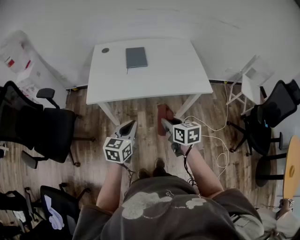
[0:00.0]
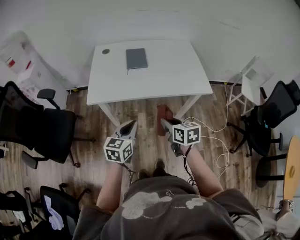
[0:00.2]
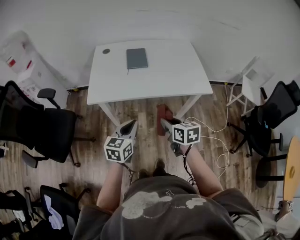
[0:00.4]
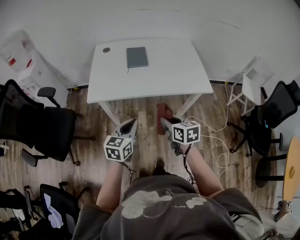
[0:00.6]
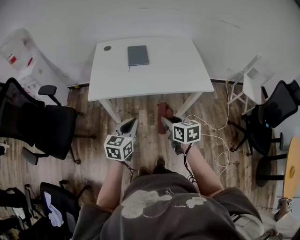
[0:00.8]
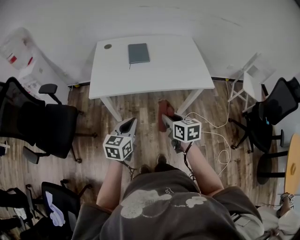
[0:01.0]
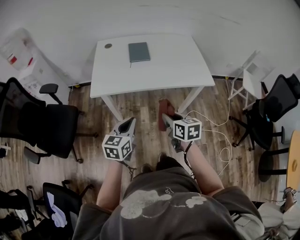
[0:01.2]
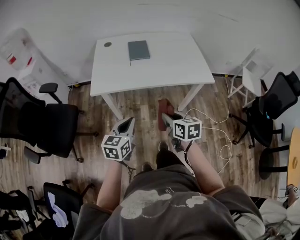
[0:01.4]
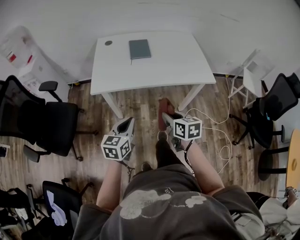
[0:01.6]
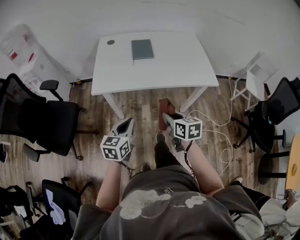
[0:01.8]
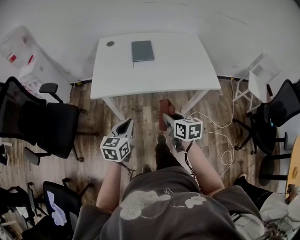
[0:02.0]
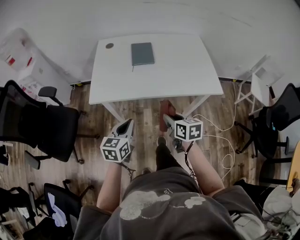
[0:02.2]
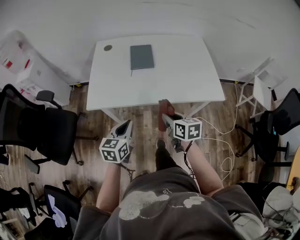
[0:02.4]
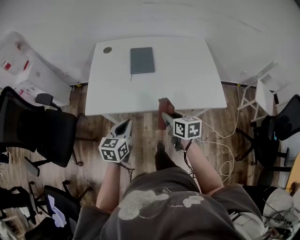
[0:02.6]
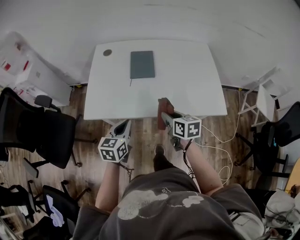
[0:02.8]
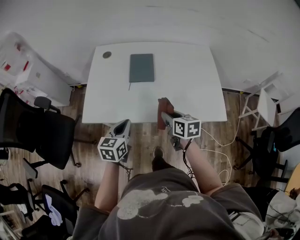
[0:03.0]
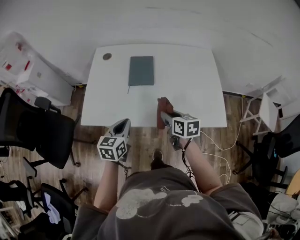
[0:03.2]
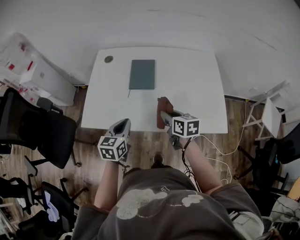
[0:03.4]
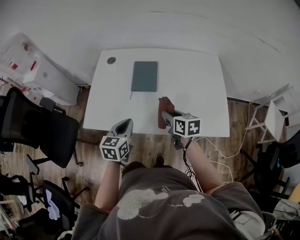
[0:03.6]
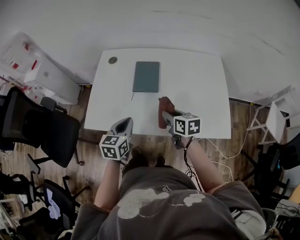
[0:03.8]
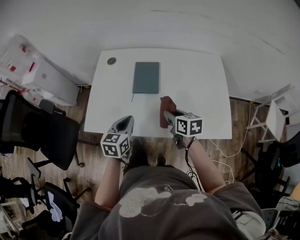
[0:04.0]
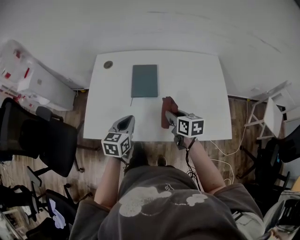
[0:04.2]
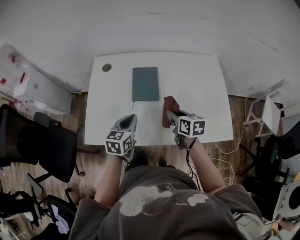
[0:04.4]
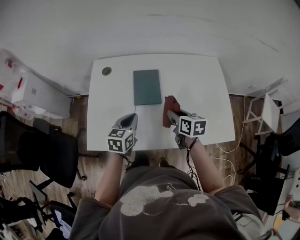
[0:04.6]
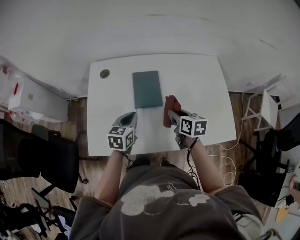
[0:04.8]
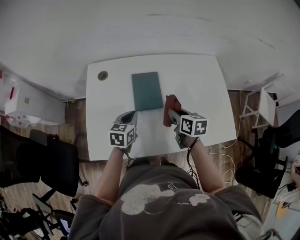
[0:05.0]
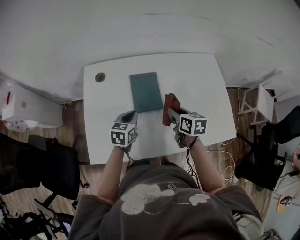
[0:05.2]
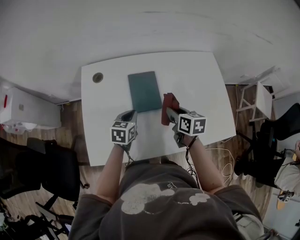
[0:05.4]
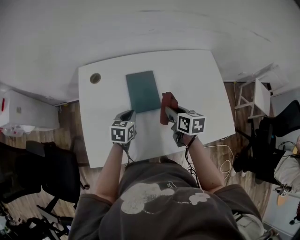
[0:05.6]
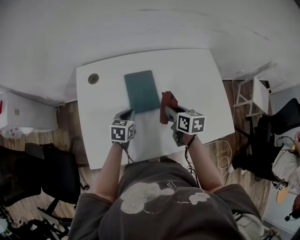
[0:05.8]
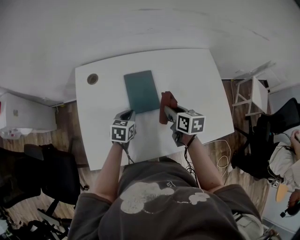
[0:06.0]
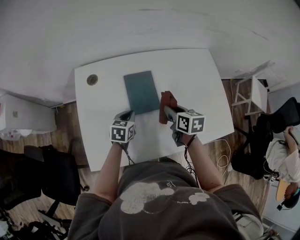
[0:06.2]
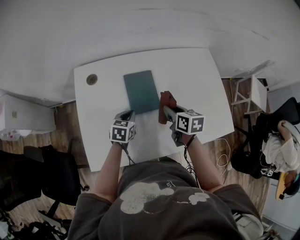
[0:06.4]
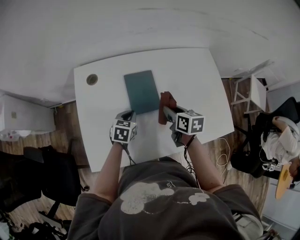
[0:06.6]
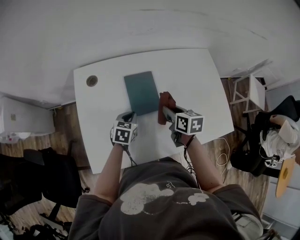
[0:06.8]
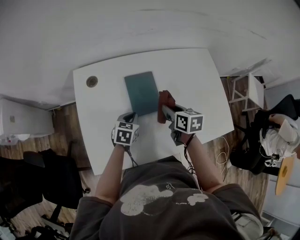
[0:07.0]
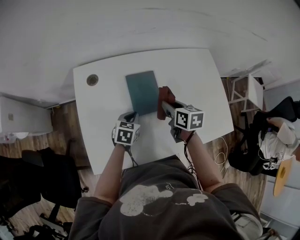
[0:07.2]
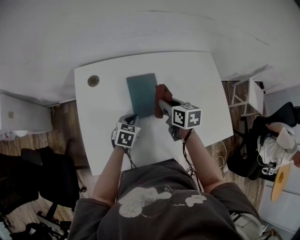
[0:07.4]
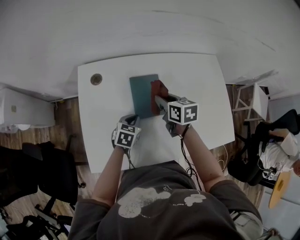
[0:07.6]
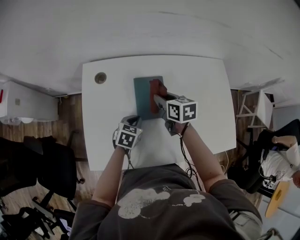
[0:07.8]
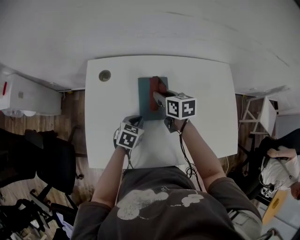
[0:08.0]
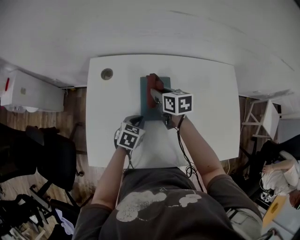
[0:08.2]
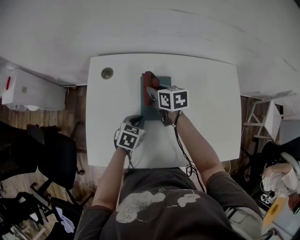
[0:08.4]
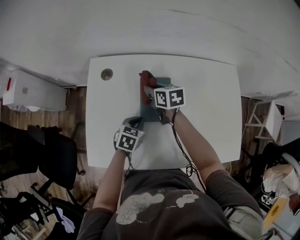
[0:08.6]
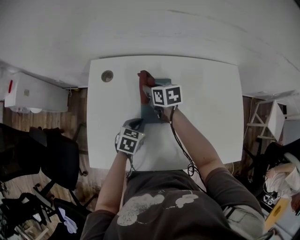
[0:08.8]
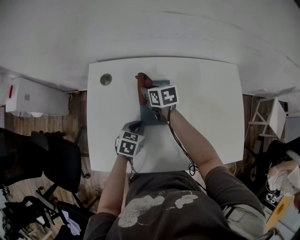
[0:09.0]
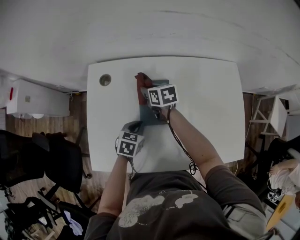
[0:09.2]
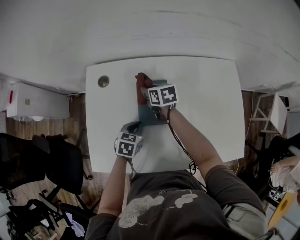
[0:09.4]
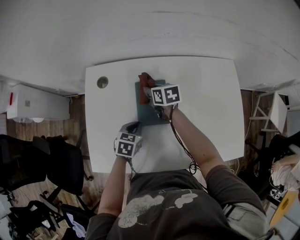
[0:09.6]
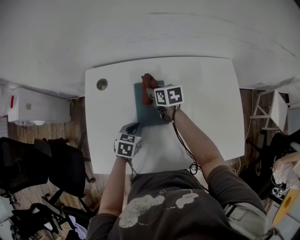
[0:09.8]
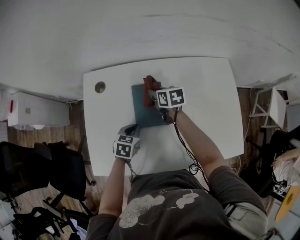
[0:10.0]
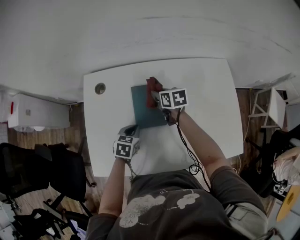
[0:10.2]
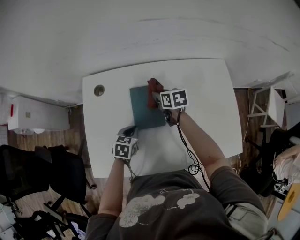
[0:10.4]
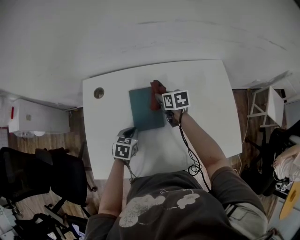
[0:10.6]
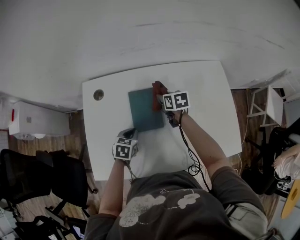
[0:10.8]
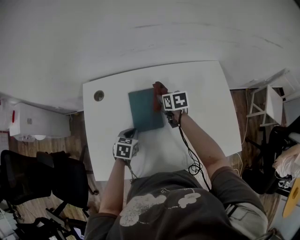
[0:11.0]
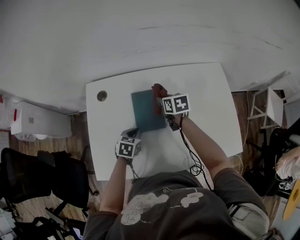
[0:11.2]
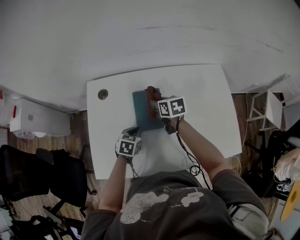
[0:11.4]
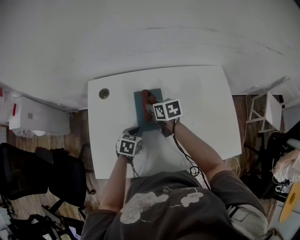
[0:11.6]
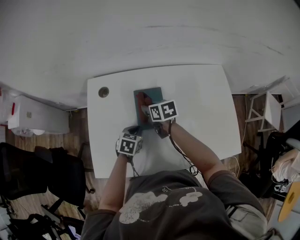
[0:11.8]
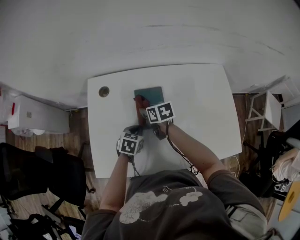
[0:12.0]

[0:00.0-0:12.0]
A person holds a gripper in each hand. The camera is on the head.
0:00.0 to 0:01.6: The left gripper shifts by some 5 cm; the right gripper moves roughly 5 cm.
0:01.6 to 0:03.0: Both grippers travel together forward, roughly 30 cm.
0:03.0 to 0:04.4: The grippers both shift forward by some 15 cm.
0:04.4 to 0:06.0: The left gripper travels forward and downward by about 15 cm. Meanwhile the right gripper moves forward, some 10 cm.
0:06.0 to 0:07.6: The right gripper goes about 10 cm to the left and forward.
0:07.6 to 0:09.0: The right gripper heads forward, to the left and downward, covering approximately 15 cm.
0:09.0 to 0:10.4: The right gripper shifts roughly 10 cm to the right.
0:10.4 to 0:12.0: The right gripper is displaced to the left and backward by some 10 cm.

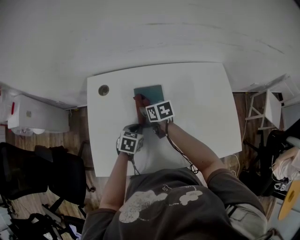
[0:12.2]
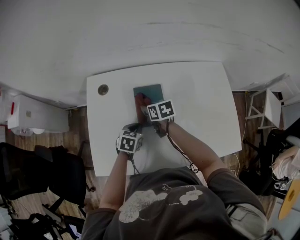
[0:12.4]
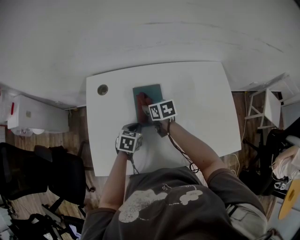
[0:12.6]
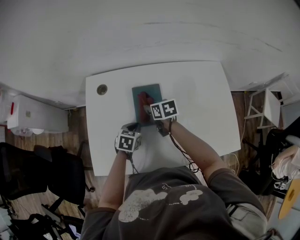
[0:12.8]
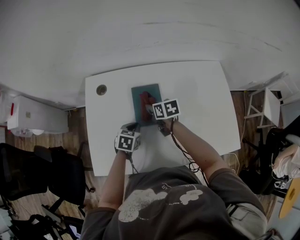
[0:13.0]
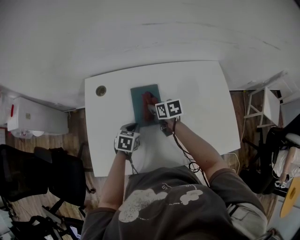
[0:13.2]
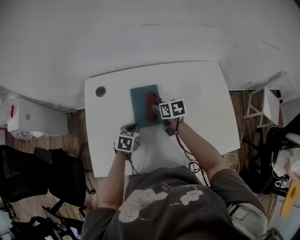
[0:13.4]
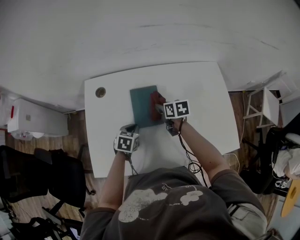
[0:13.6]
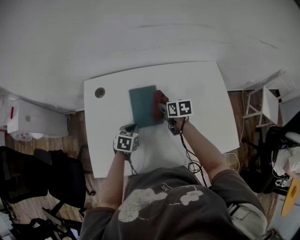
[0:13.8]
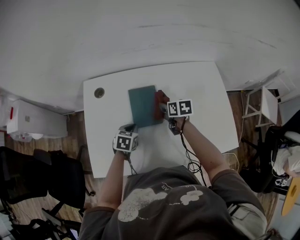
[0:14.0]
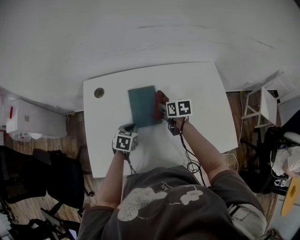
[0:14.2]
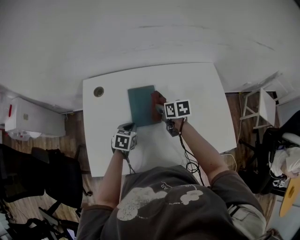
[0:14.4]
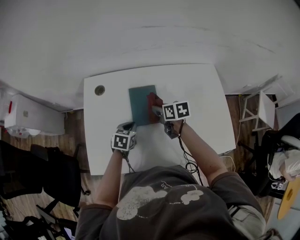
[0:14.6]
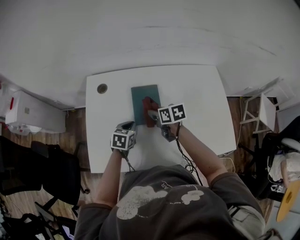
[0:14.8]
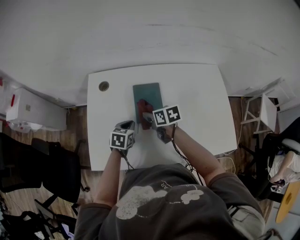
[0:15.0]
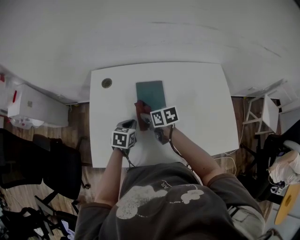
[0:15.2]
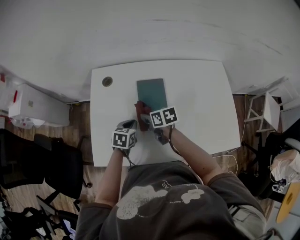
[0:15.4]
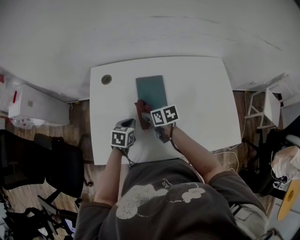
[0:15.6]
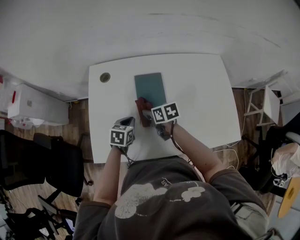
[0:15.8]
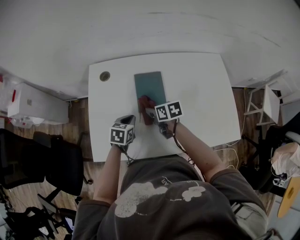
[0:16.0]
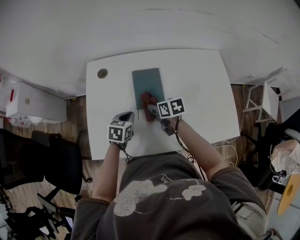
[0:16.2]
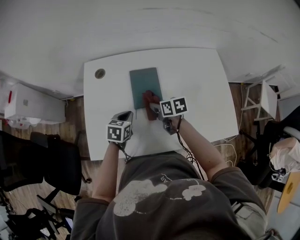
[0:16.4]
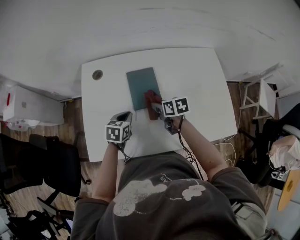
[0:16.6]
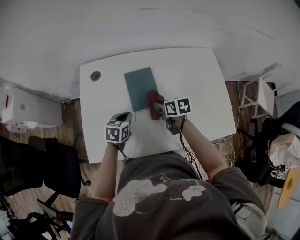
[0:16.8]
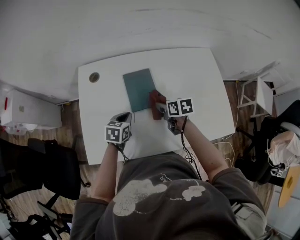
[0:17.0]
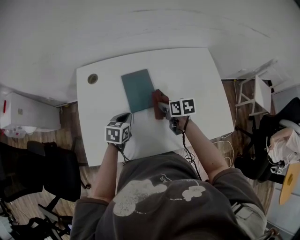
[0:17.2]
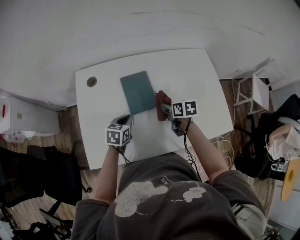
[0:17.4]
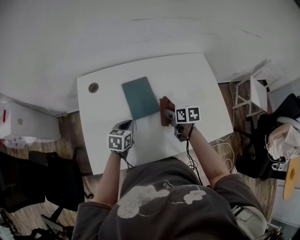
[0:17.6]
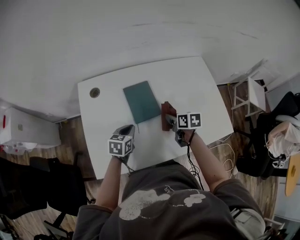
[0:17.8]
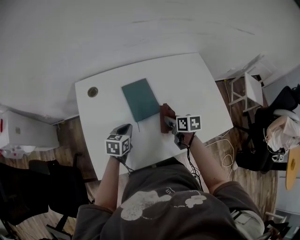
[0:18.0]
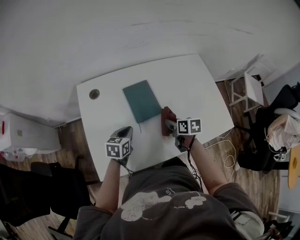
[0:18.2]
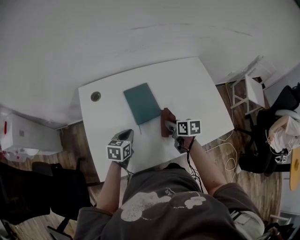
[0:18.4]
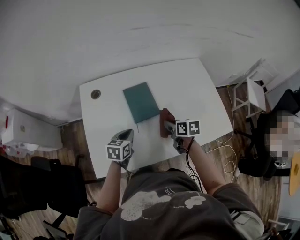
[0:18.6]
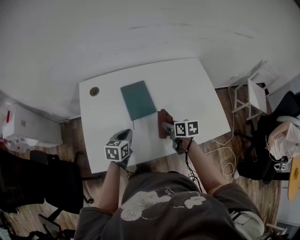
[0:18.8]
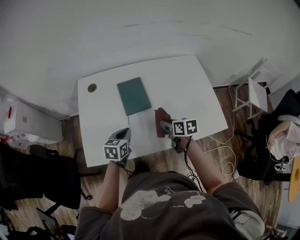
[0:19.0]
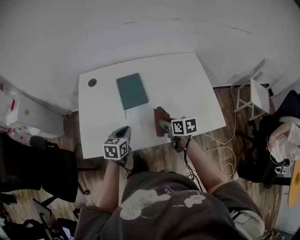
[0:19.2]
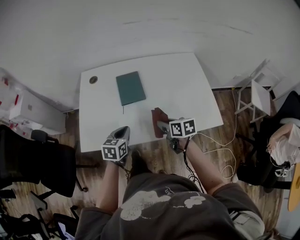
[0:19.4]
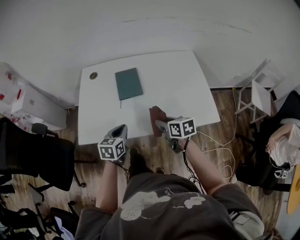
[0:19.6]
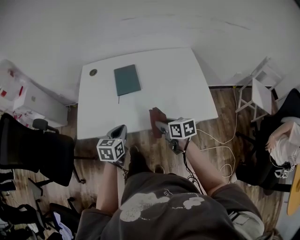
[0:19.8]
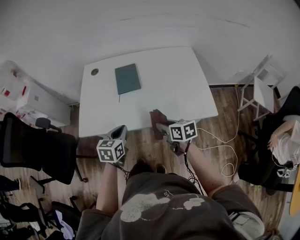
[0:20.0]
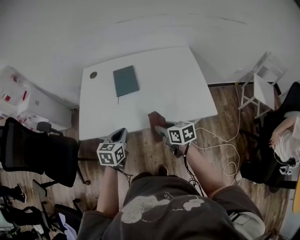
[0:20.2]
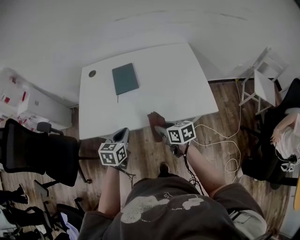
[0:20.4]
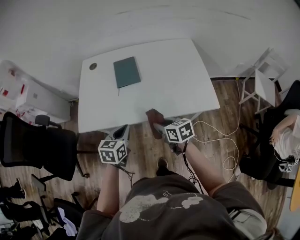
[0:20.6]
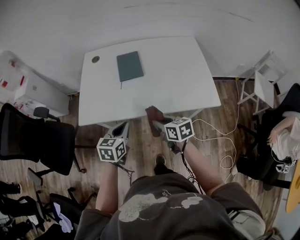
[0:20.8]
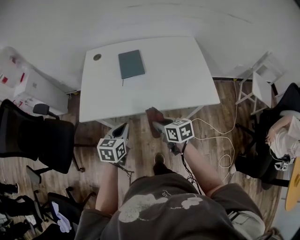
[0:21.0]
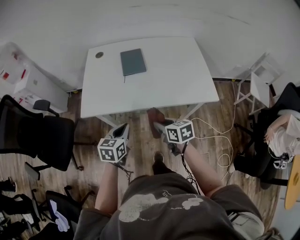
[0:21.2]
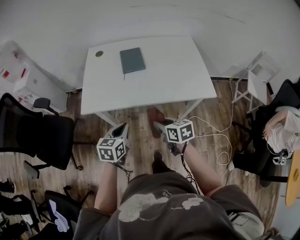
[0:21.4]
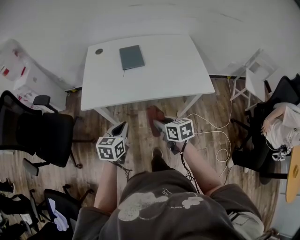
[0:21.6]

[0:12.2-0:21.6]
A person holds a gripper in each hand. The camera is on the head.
0:12.2 to 0:13.8: The right gripper goes approximately 10 cm to the right.
0:13.8 to 0:15.4: The right gripper moves to the left and backward, roughly 15 cm. Meanwhile the left gripper changes place by about 5 cm.
0:15.4 to 0:17.0: The right gripper travels to the right by about 15 cm.
0:17.0 to 0:18.4: The right gripper moves backward, roughly 5 cm.
0:18.4 to 0:20.0: The right gripper moves backward, roughly 25 cm, and rotates approximately 30 degrees. Meanwhile the left gripper travels backward and to the right by approximately 25 cm.
0:20.0 to 0:21.6: The two grippers go approximately 20 cm backward and to the left.

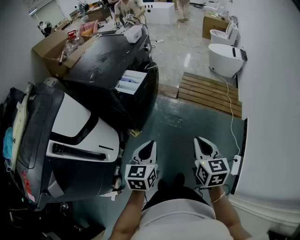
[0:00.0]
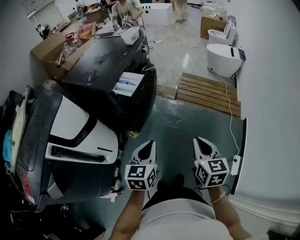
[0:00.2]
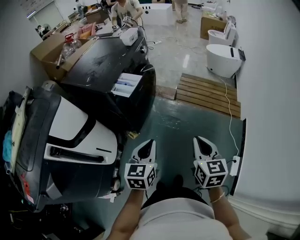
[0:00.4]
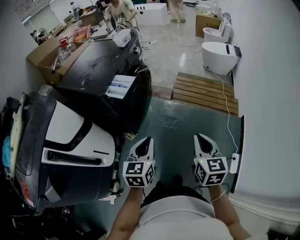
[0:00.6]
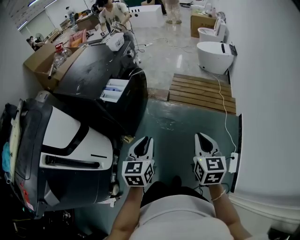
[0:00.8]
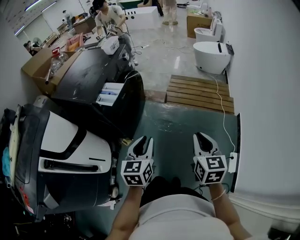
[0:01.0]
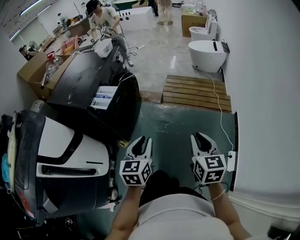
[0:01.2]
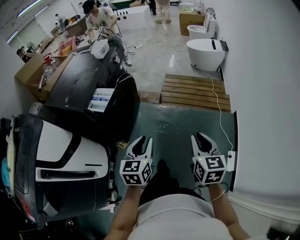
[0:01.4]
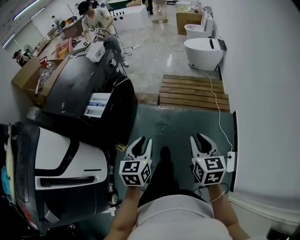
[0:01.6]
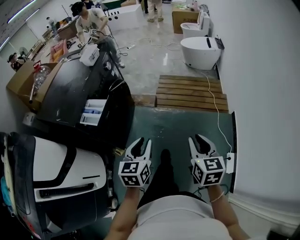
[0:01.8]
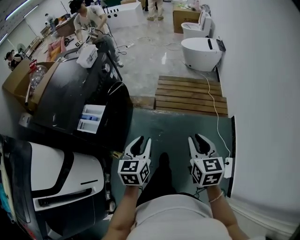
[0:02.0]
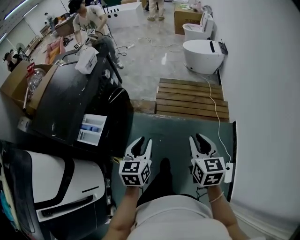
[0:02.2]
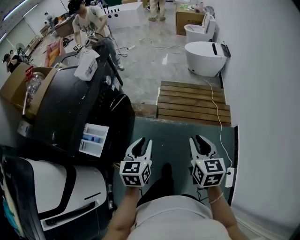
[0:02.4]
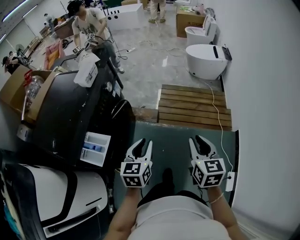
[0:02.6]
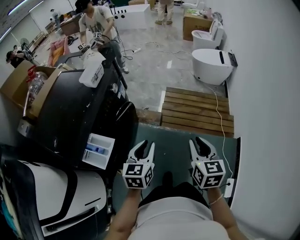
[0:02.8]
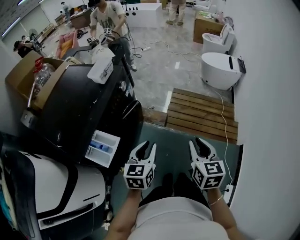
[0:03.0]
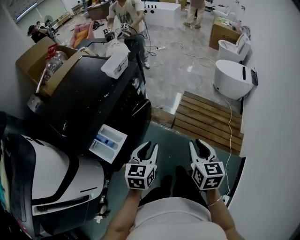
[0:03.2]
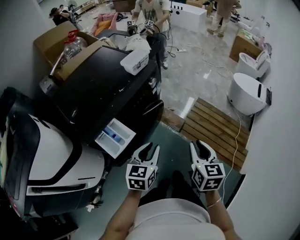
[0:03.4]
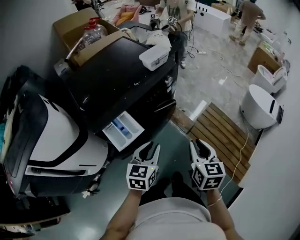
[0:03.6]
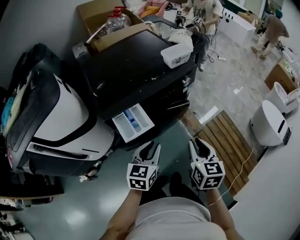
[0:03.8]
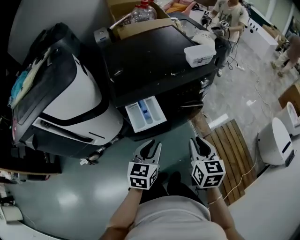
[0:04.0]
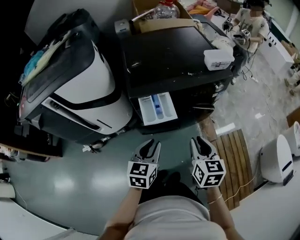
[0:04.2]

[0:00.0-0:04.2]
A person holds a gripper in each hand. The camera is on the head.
0:00.0 to 0:01.4: The left gripper shifts roughly 15 cm to the right and forward. The right gripper heads to the right, covering approximately 15 cm.
0:01.4 to 0:02.8: Both grippers travel together forward, some 30 cm.
0:02.8 to 0:04.2: The left gripper moves approximately 15 cm, and turns by some 60 degrees; the right gripper ends up about 25 cm from where it was, and rotates about 60 degrees.
